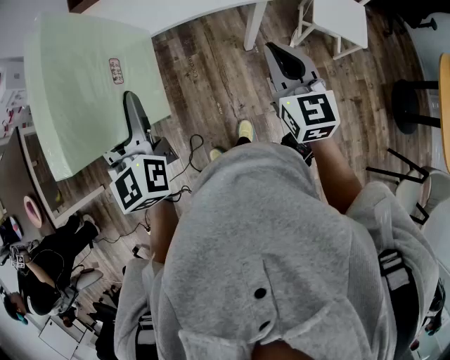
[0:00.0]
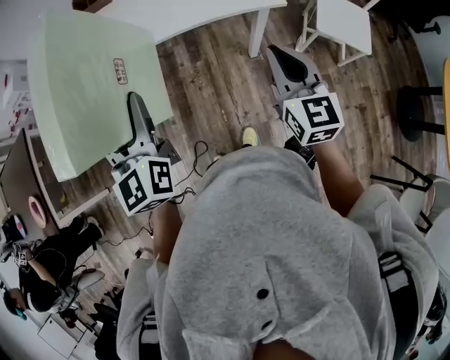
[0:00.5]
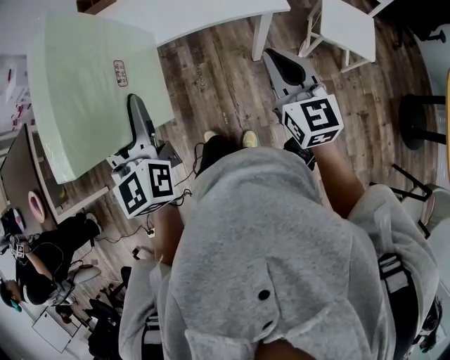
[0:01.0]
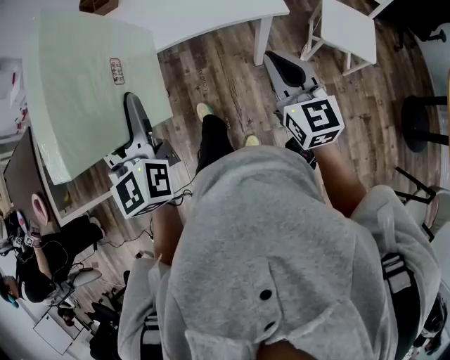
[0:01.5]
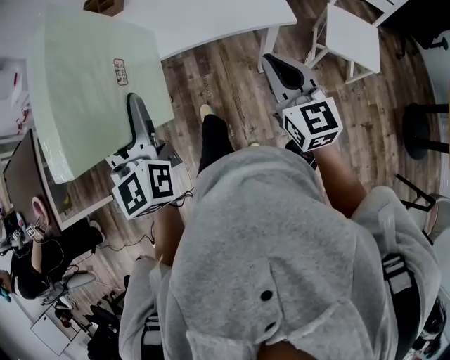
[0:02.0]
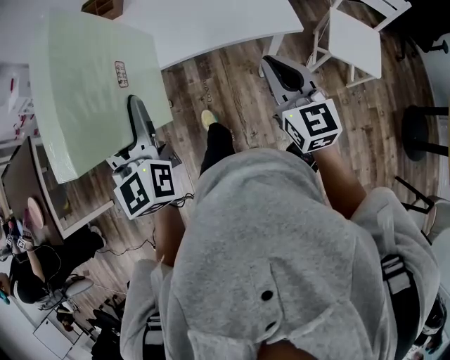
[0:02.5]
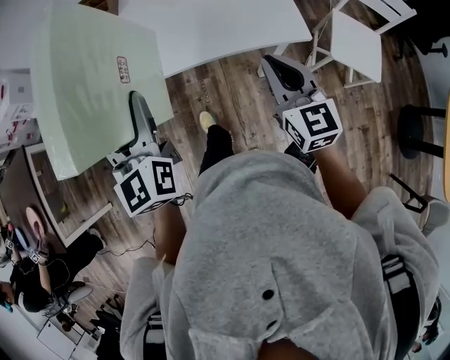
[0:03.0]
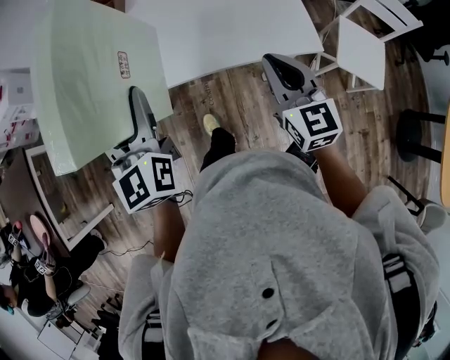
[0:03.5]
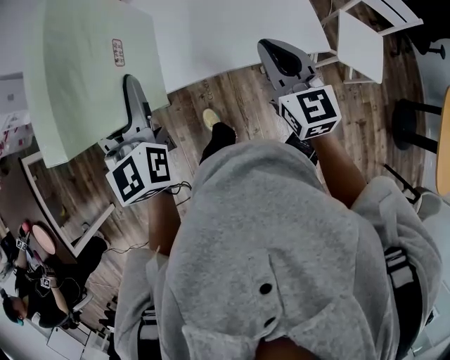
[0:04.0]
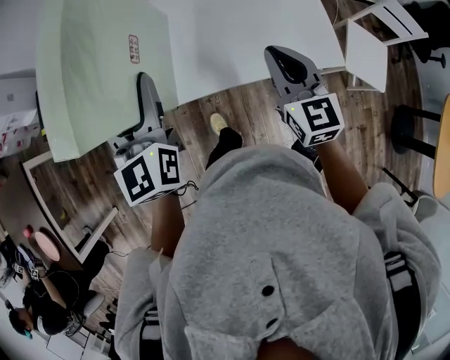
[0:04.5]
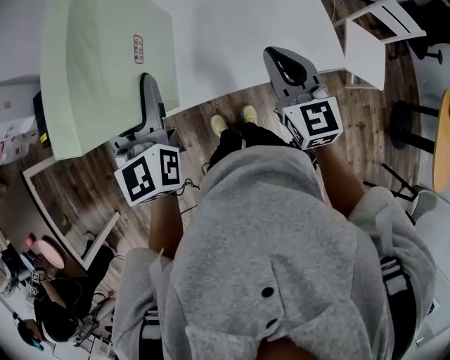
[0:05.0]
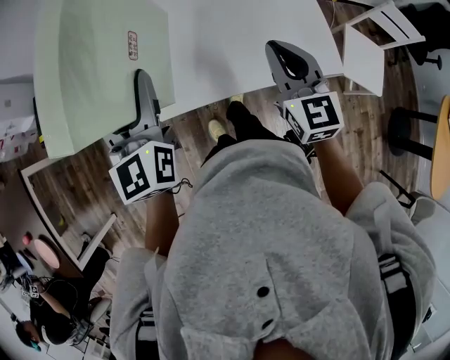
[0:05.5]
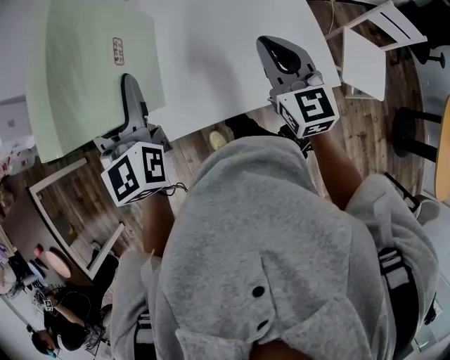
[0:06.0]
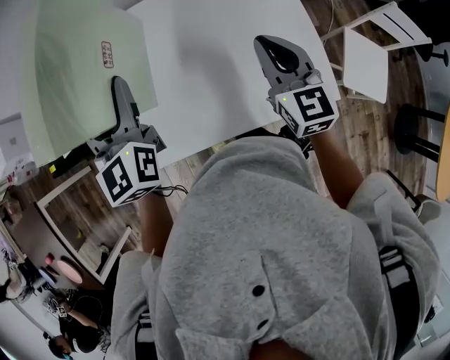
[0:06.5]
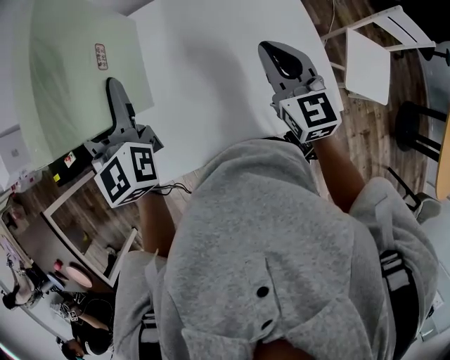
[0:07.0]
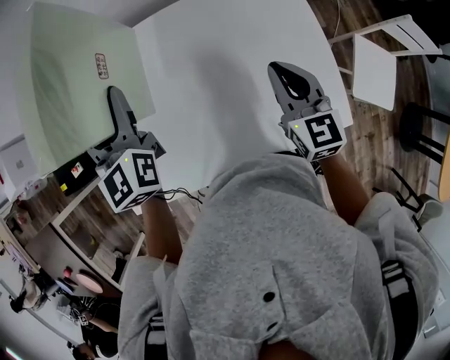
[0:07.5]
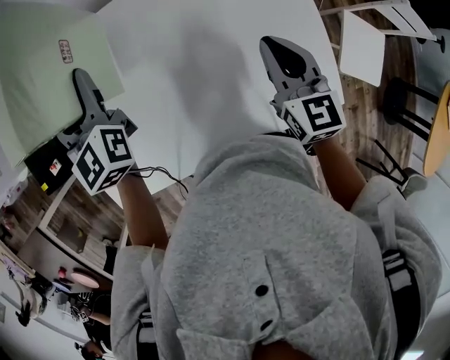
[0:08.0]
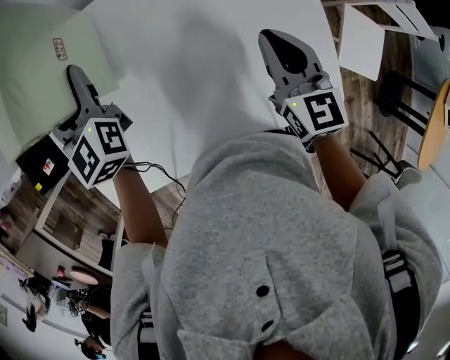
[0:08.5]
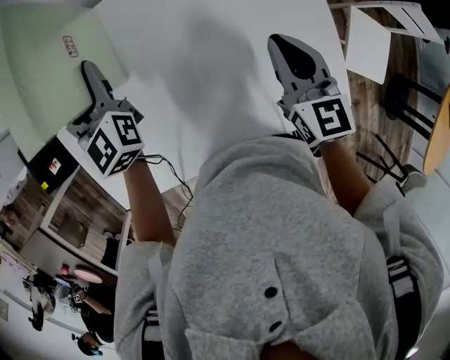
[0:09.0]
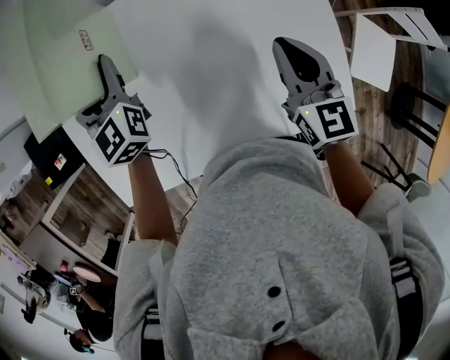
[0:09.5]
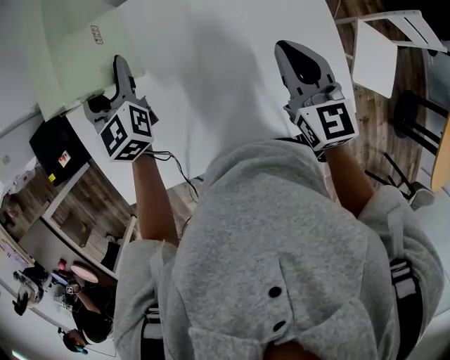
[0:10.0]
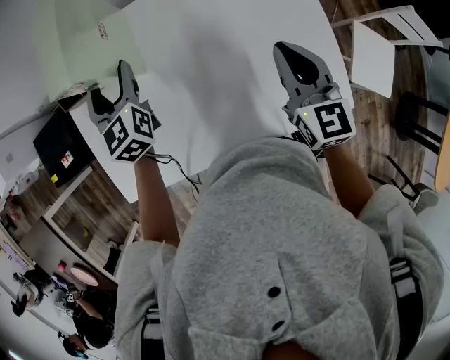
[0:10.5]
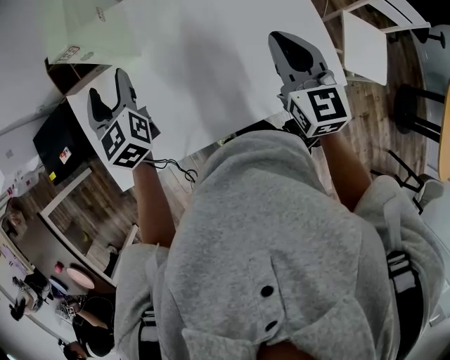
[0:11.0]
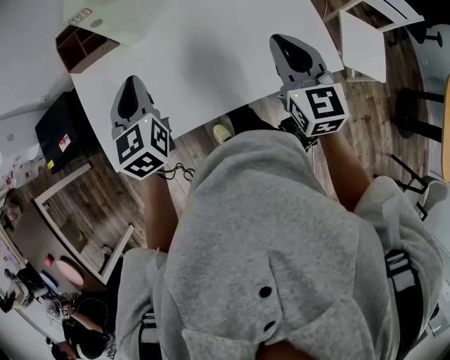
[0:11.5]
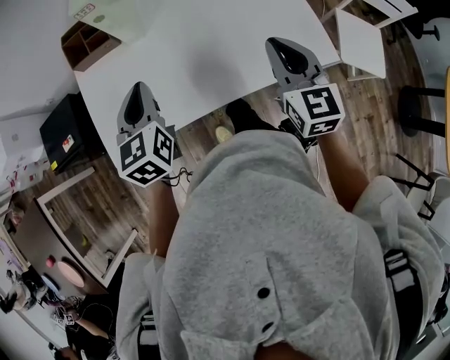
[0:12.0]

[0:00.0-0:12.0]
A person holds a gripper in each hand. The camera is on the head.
0:00.0 to 0:02.0: The right gripper travels forward by about 5 cm; the left gripper shifts by some 5 cm.
0:02.0 to 0:04.0: Both grippers travel together forward, some 25 cm.
0:04.0 to 0:06.0: Both grippers travel together forward, about 15 cm.
0:06.0 to 0:08.0: The right gripper shifts approximately 15 cm forward, downward and to the right, while the left gripper is displaced forward by roughly 25 cm.
0:08.0 to 0:10.0: The left gripper moves downward, some 5 cm.
0:10.0 to 0:12.0: Both grippers travel together backward, about 25 cm. The left gripper closes.

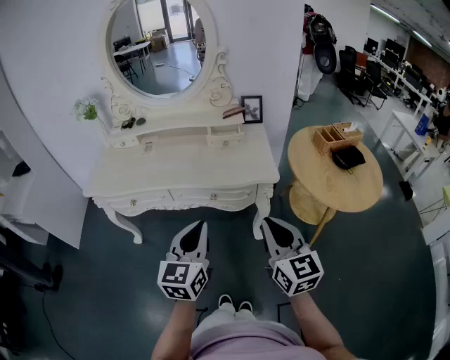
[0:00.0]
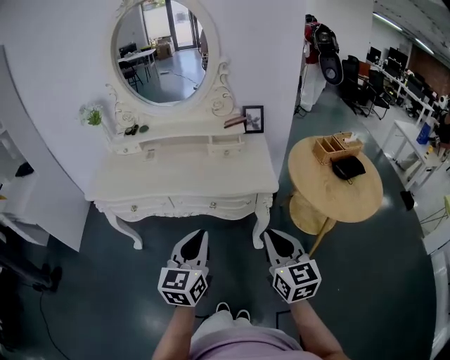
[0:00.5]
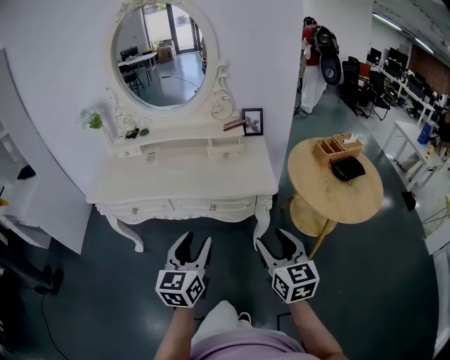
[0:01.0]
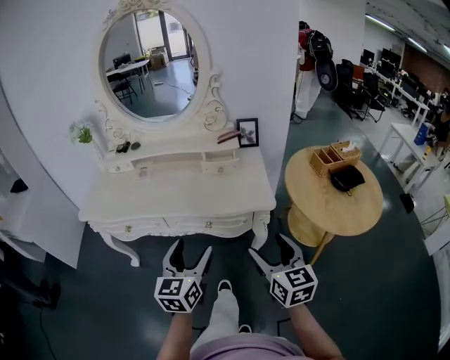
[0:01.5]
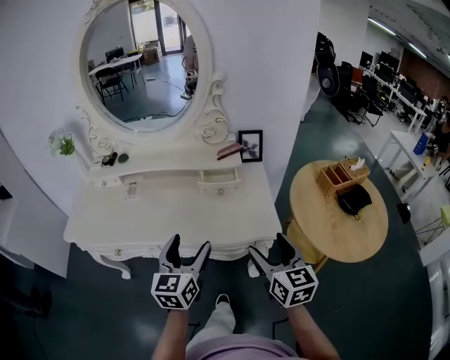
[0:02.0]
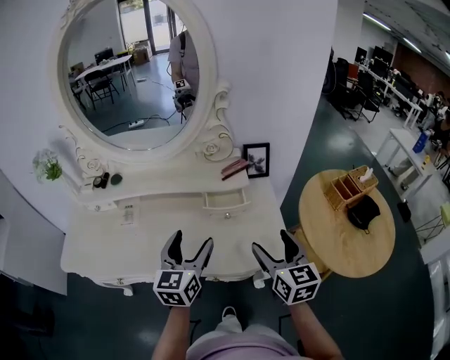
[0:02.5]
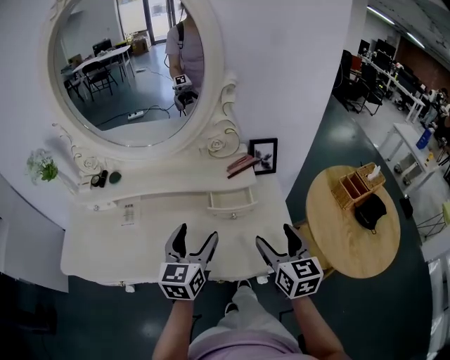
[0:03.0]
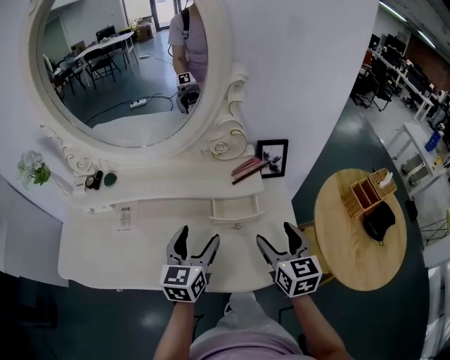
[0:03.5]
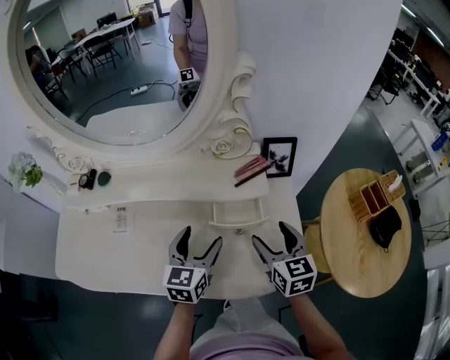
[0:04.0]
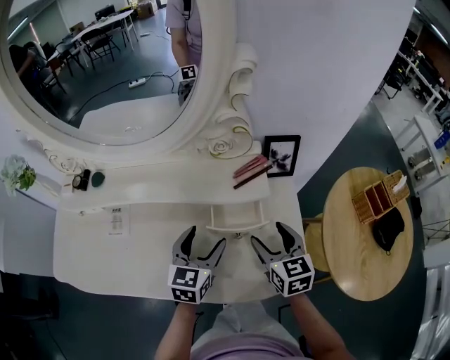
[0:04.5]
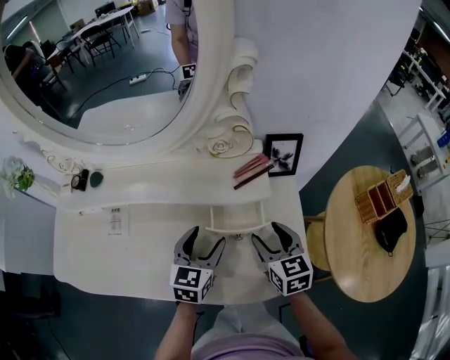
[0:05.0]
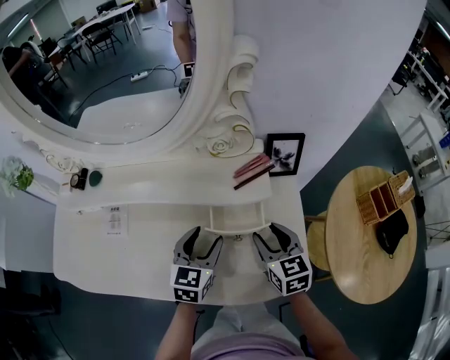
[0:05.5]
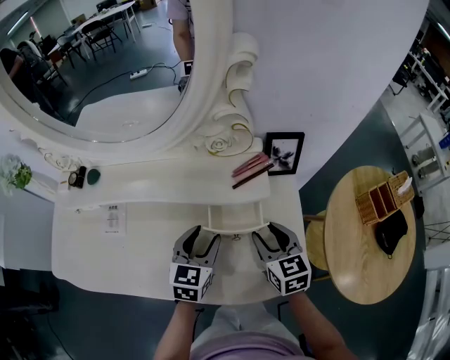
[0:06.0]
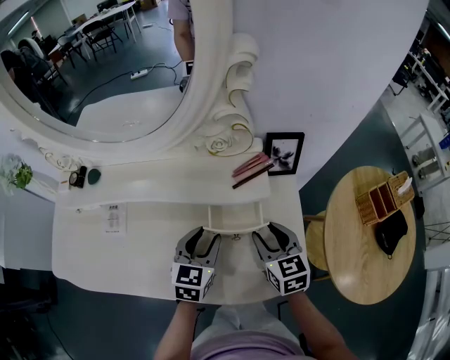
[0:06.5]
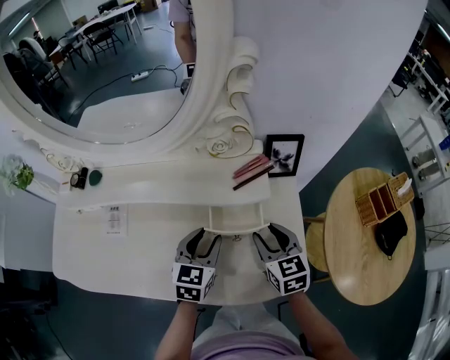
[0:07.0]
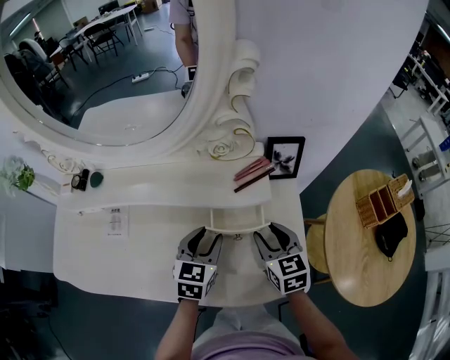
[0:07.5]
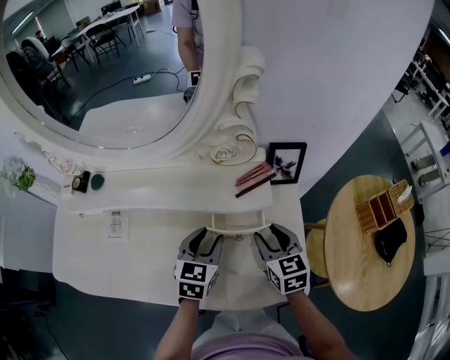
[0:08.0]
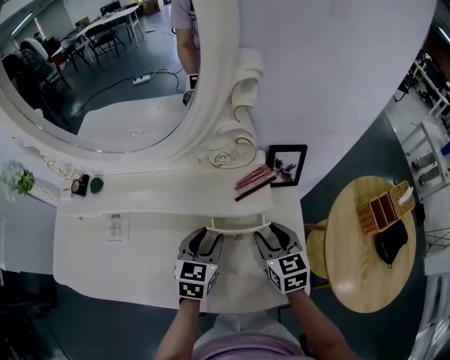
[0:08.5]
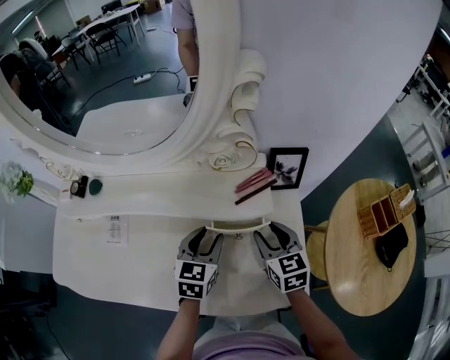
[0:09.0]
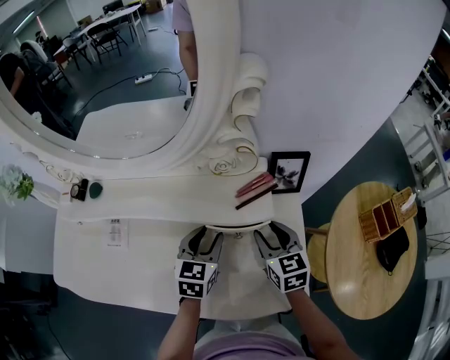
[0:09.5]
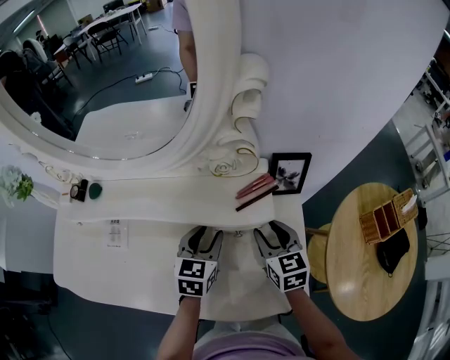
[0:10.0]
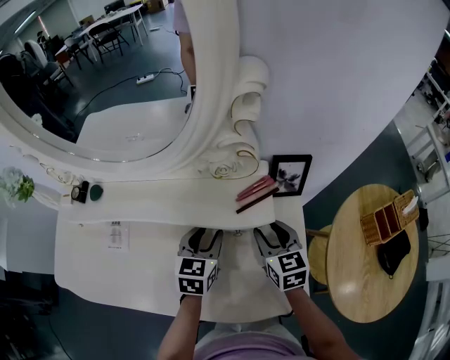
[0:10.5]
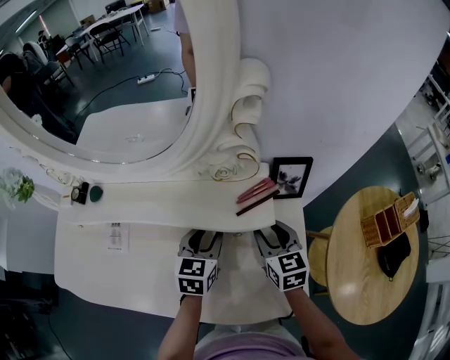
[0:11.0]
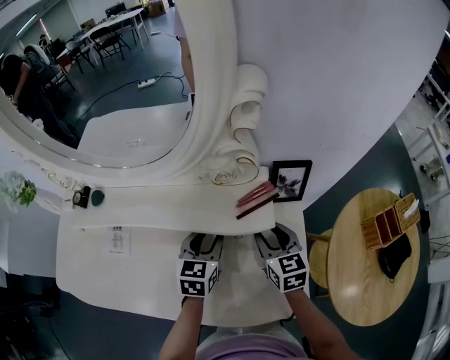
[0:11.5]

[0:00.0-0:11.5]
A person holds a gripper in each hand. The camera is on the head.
0:00.0 to 0:02.0: Both grippers travel together forward, about 20 cm. The right gripper opens. Meanwhile the left gripper opens its fingers.
0:02.0 to 0:04.0: Both grippers travel together forward, some 25 cm.
0:04.0 to 0:06.0: The left gripper ends up some 5 cm from where it was, and closes up; the right gripper ends up about 5 cm from where it was, and closes.
0:06.0 to 0:07.5: Both grippers stay about where they are.
0:07.5 to 0:09.5: The right gripper moves forward, about 5 cm.
0:09.5 to 0:11.5: The grippers move only a little.

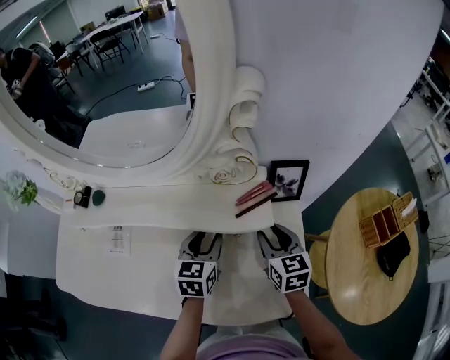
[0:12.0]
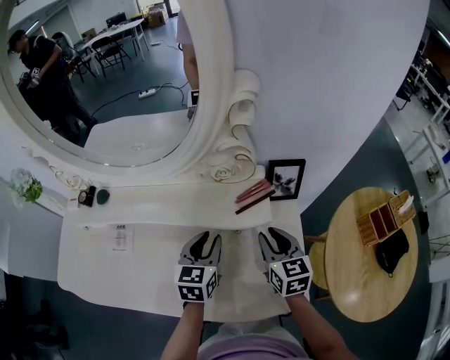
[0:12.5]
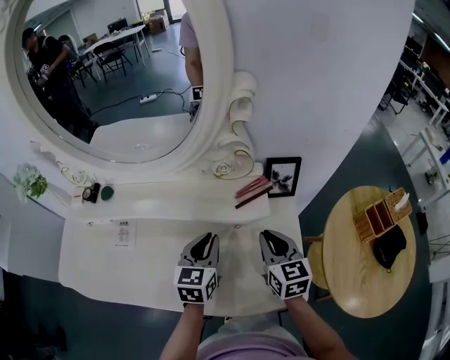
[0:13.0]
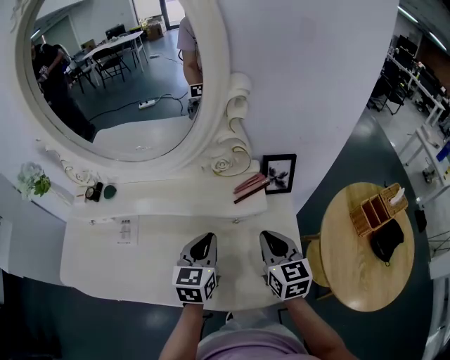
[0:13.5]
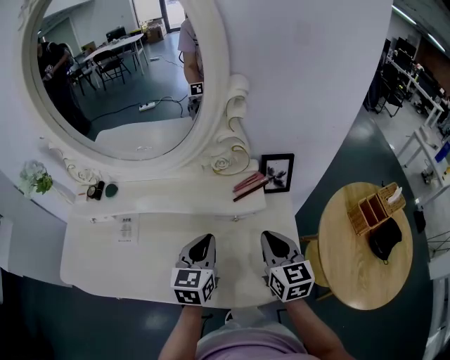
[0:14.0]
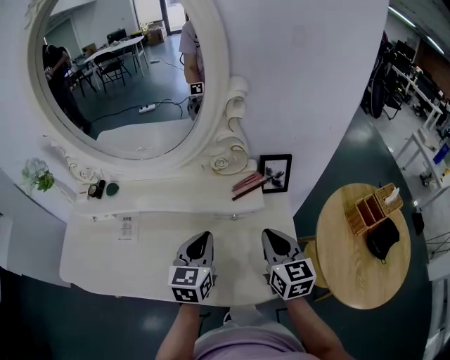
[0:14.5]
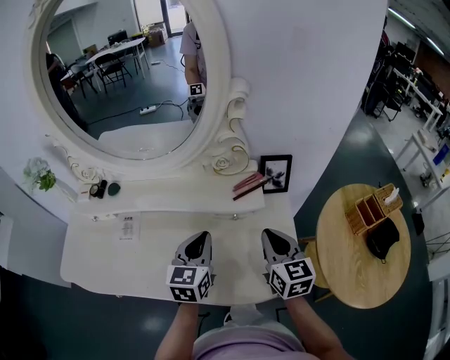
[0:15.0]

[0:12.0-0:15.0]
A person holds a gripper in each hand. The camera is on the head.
0:12.0 to 0:13.5: The grippers both shift backward and upward by some 10 cm. The right gripper closes its fingers, while the left gripper closes its fingers.
0:13.5 to 0:15.0: There are only small adjustments of the grippers.
